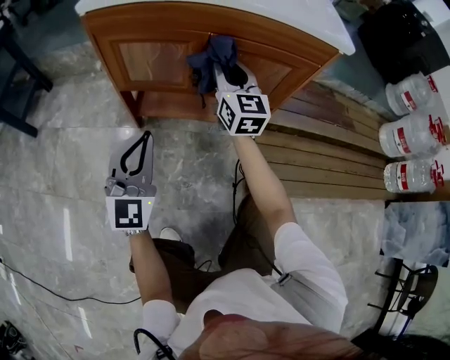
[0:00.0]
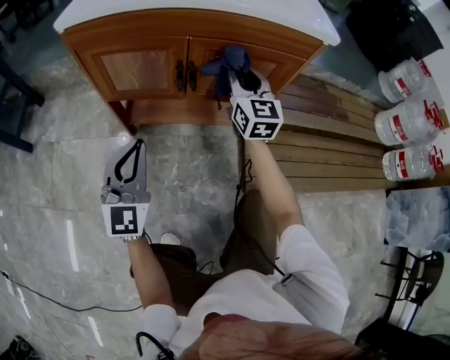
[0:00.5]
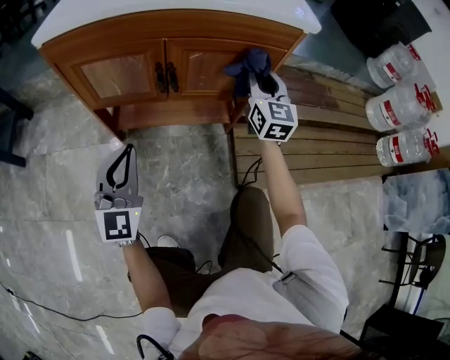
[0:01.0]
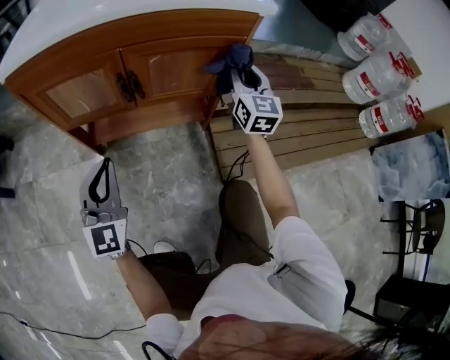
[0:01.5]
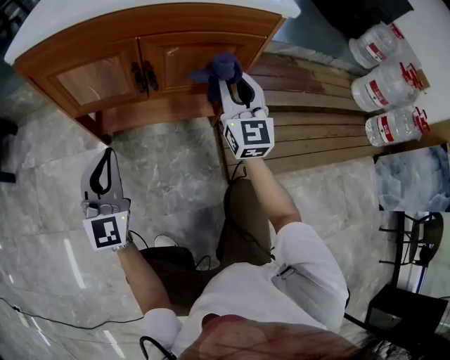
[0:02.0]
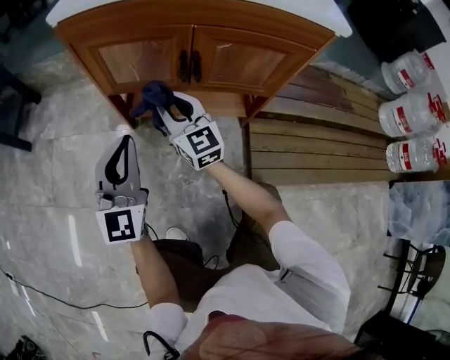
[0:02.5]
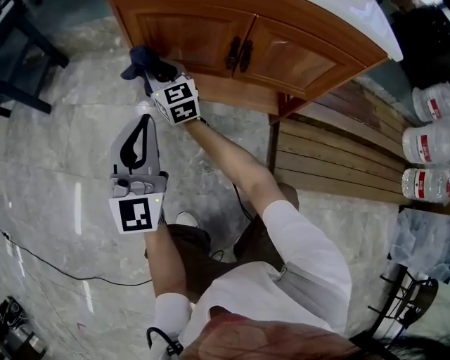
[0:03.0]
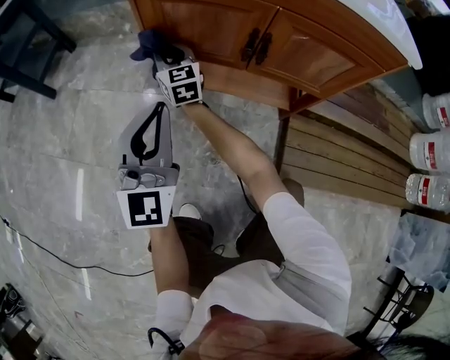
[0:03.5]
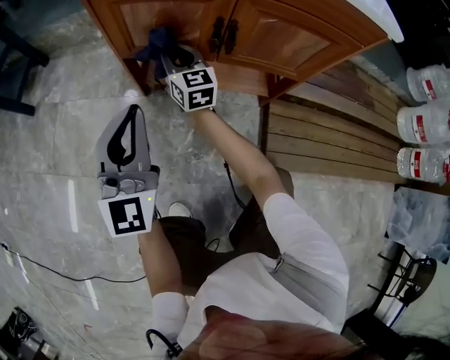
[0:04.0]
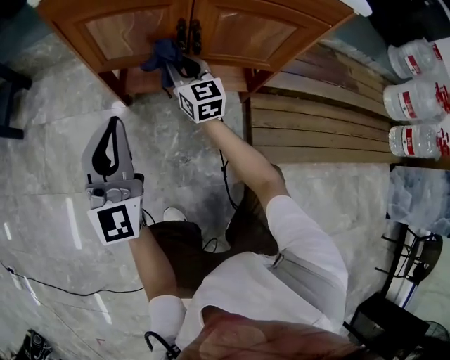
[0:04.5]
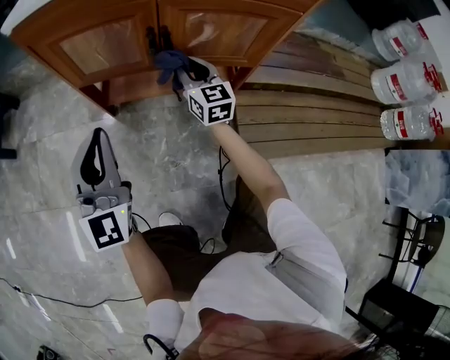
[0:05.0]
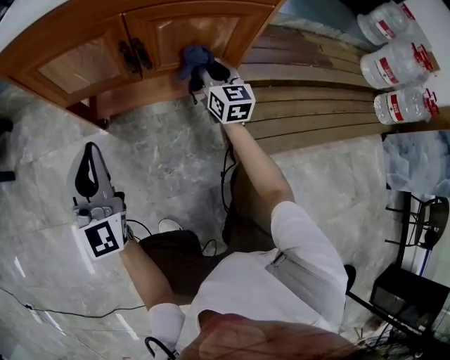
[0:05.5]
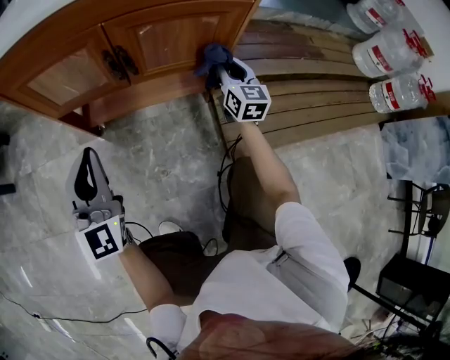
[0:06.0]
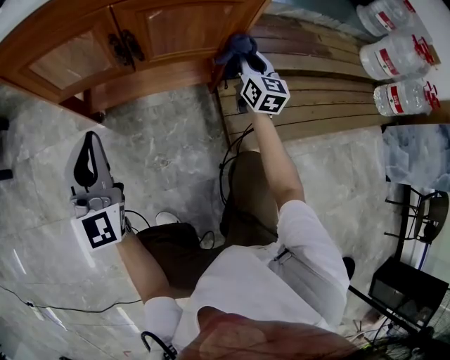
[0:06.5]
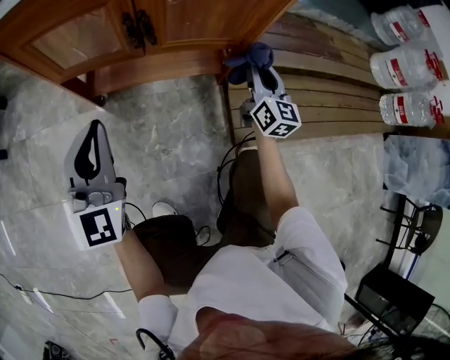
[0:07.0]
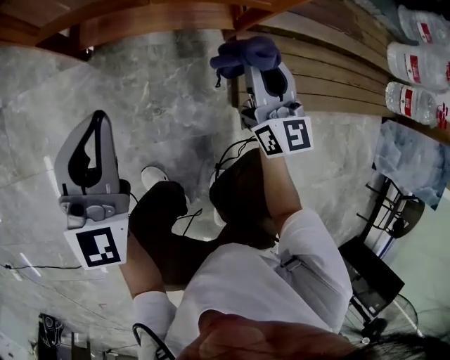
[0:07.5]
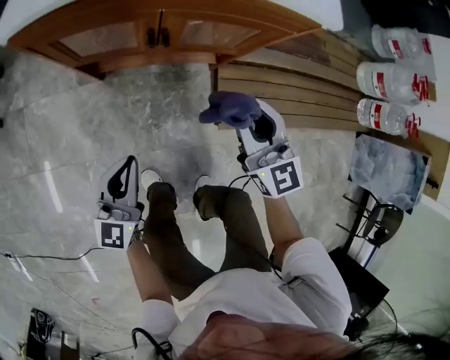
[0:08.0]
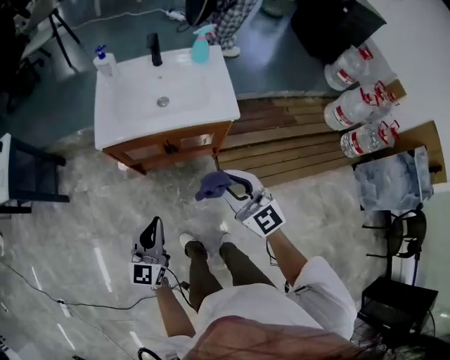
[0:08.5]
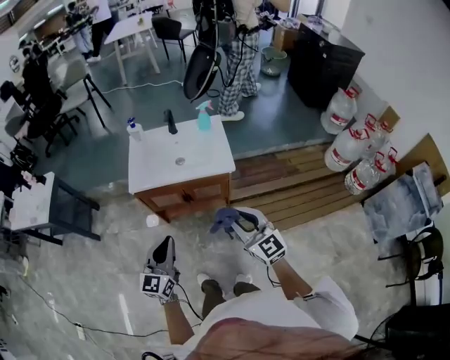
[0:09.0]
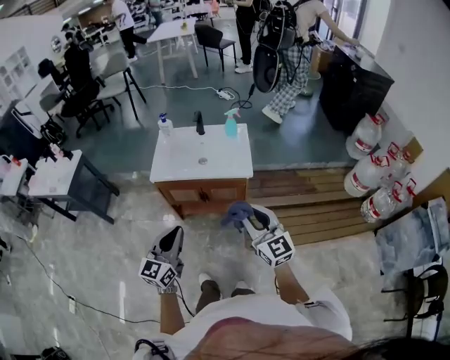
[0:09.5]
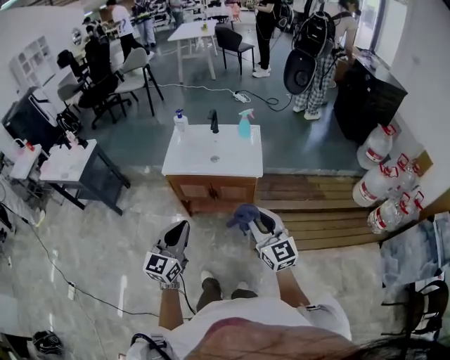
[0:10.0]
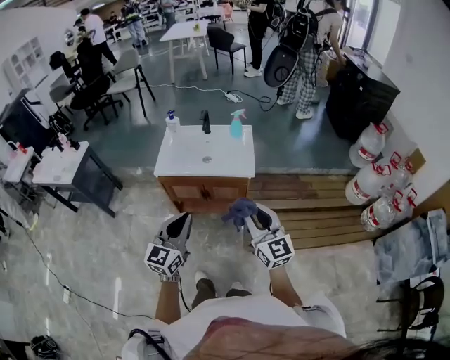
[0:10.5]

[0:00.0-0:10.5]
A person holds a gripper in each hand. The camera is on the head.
0:00.0 to 0:02.0: The right gripper travels to the right by some 15 cm.
0:02.0 to 0:04.0: The right gripper heads to the left, downward and forward, covering some 35 cm, and swivels roughly 30 degrees; the left gripper travels to the left by about 5 cm.
0:04.0 to 0:06.5: The left gripper is displaced to the right by approximately 5 cm. The right gripper shifts roughly 40 cm to the right, and swivels approximately 30 degrees.
0:06.5 to 0:08.5: The left gripper heads upward, covering roughly 35 cm, and swivels about 30 degrees. The right gripper is displaced upward and backward by approximately 60 cm, and changes its angle by about 40 degrees.
0:08.5 to 0:10.5: The right gripper heads upward, backward and to the right, covering roughly 25 cm. Meanwhile the left gripper moves upward and to the right, approximately 25 cm.

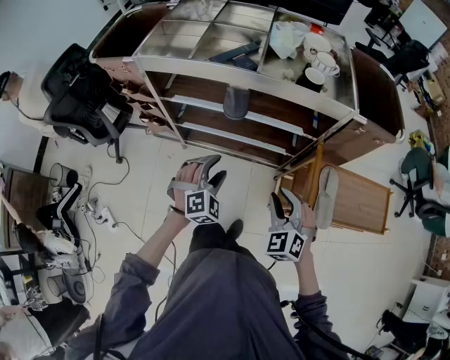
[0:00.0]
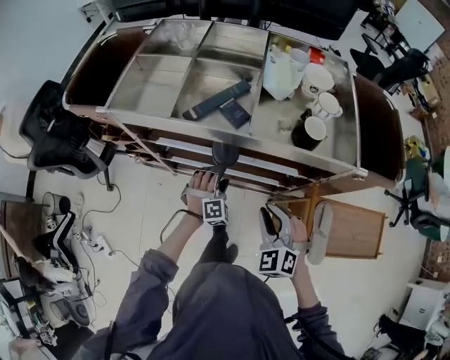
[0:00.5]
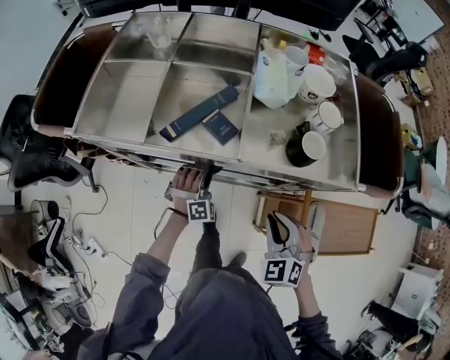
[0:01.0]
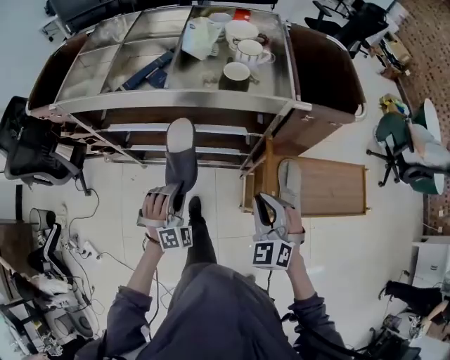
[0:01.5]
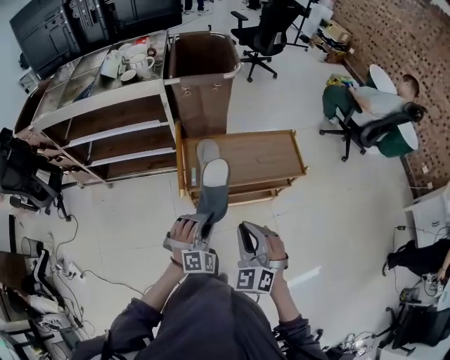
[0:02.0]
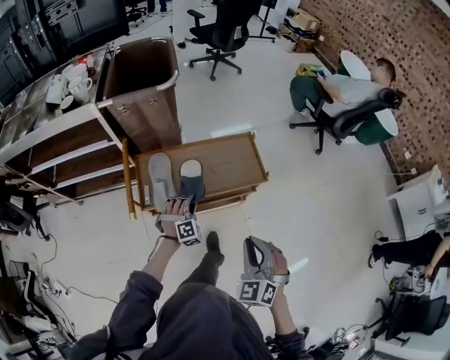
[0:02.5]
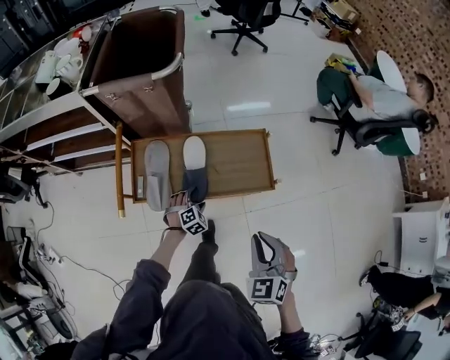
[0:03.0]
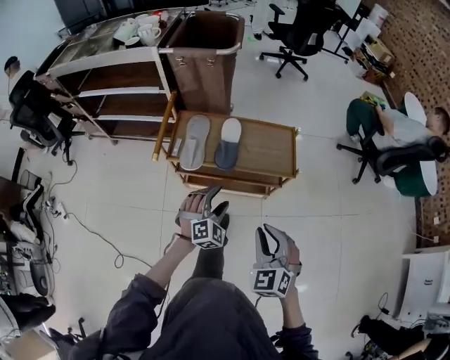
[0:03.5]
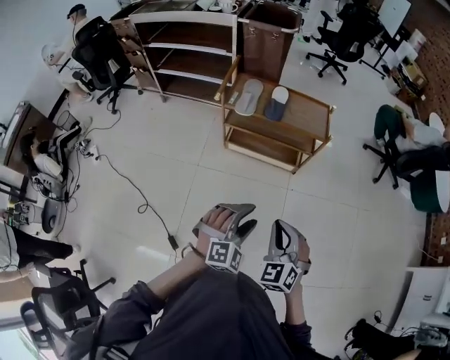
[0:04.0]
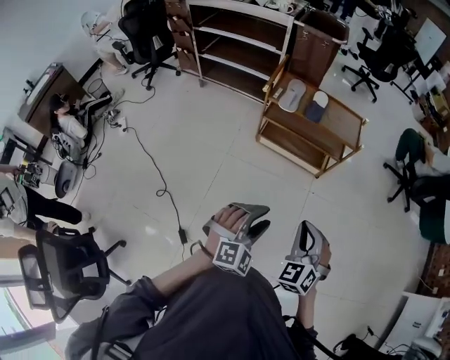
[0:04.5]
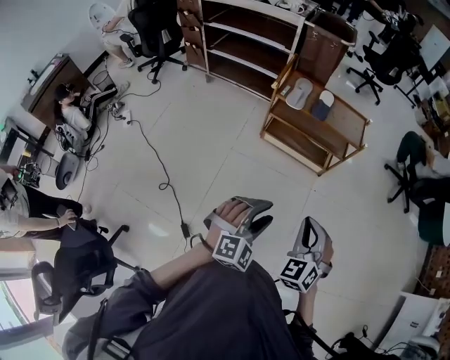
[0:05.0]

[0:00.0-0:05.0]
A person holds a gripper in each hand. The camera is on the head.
0:00.0 to 0:02.5: The pair of grippers is taken approximately 60 cm. The right gripper turns by some 30 degrees. The left gripper swivels approximately 30 degrees, and closes.
0:02.5 to 0:05.0: The pair of grippers is taken backward, some 50 cm. The right gripper rotates about 30 degrees; the left gripper rotates approximately 30 degrees.

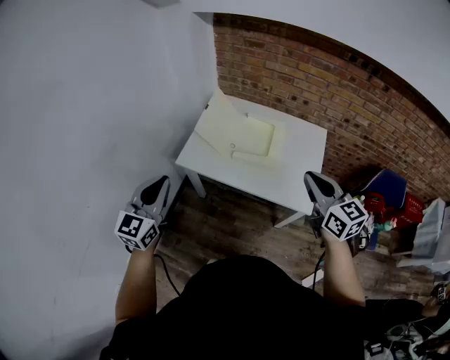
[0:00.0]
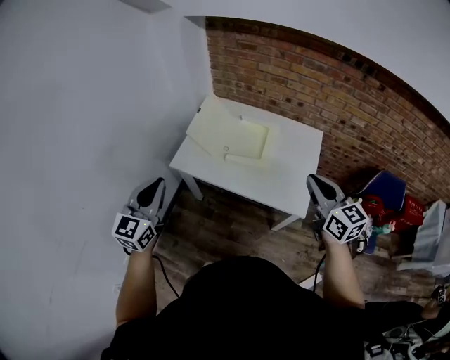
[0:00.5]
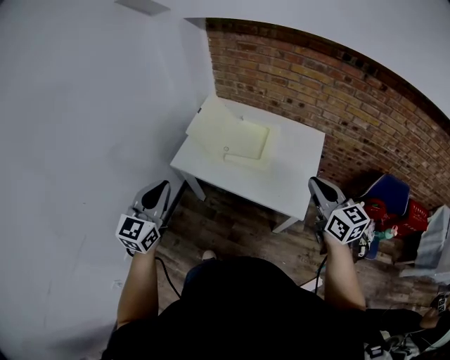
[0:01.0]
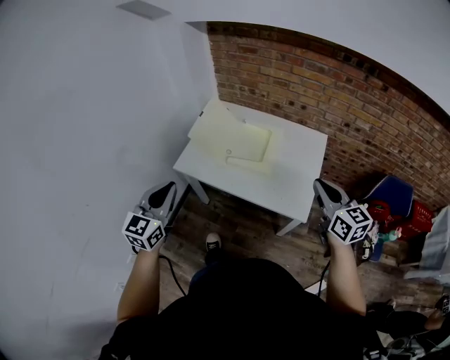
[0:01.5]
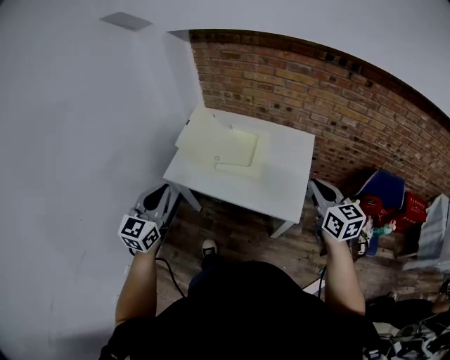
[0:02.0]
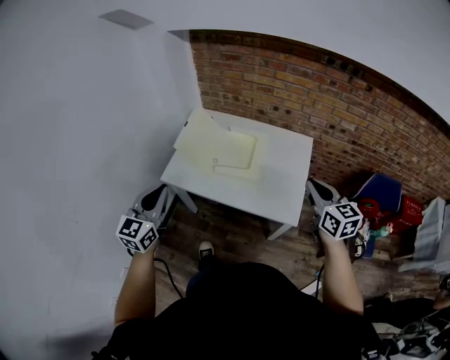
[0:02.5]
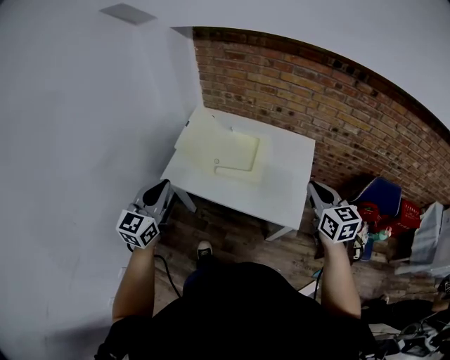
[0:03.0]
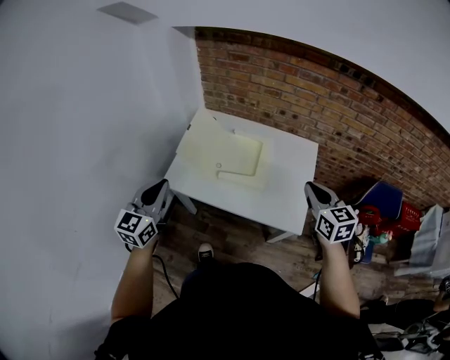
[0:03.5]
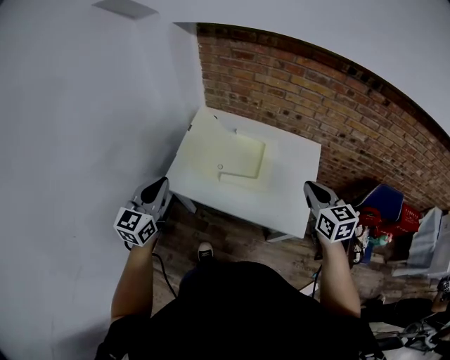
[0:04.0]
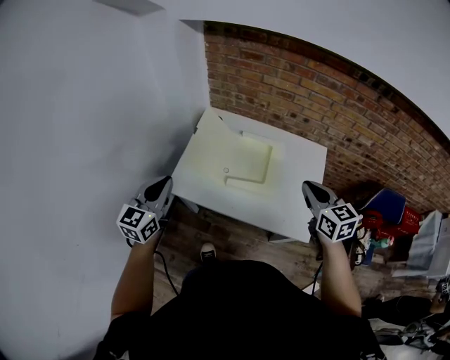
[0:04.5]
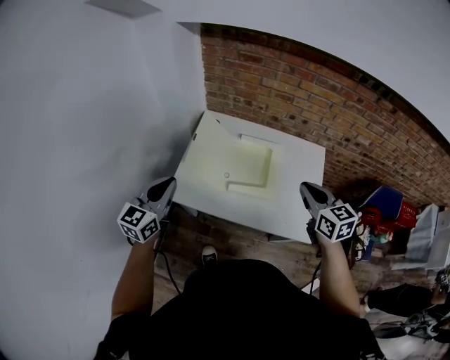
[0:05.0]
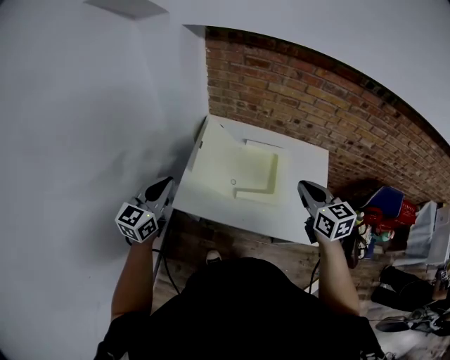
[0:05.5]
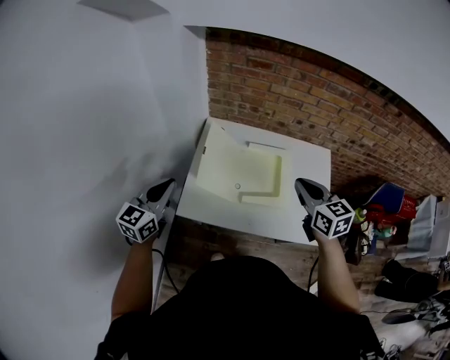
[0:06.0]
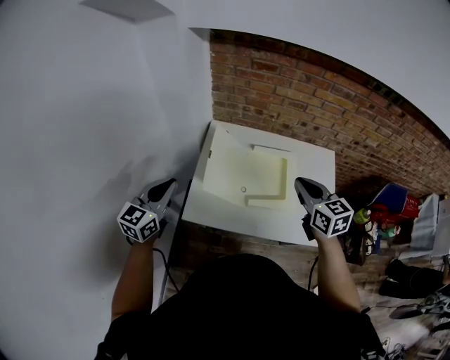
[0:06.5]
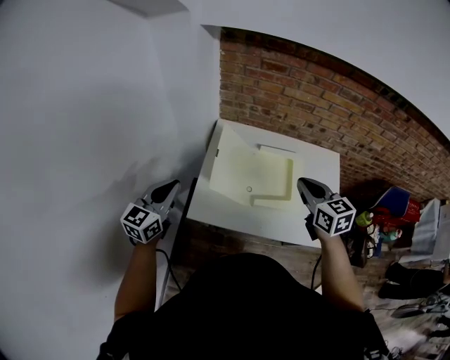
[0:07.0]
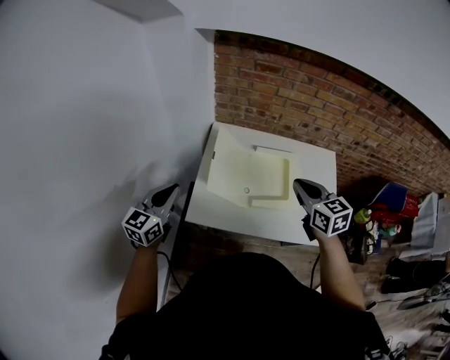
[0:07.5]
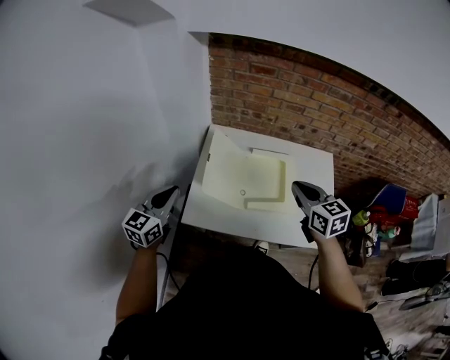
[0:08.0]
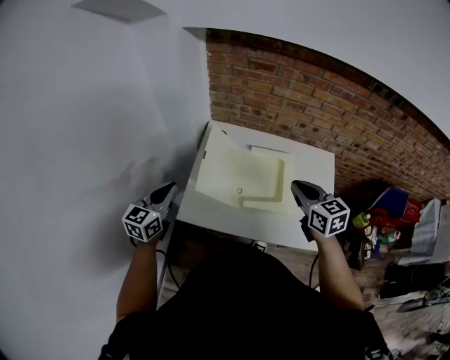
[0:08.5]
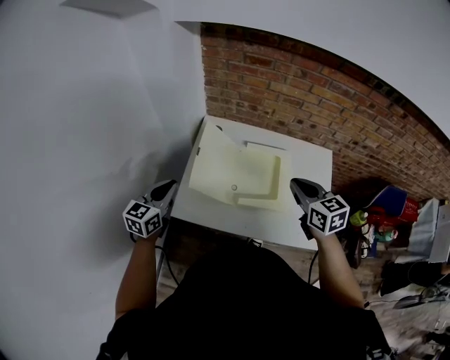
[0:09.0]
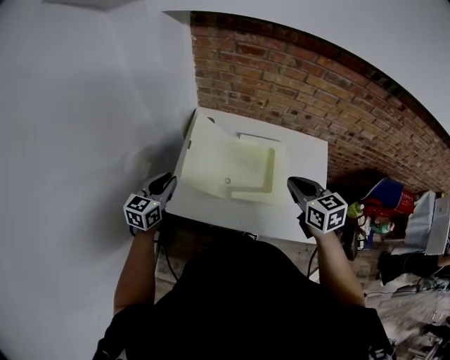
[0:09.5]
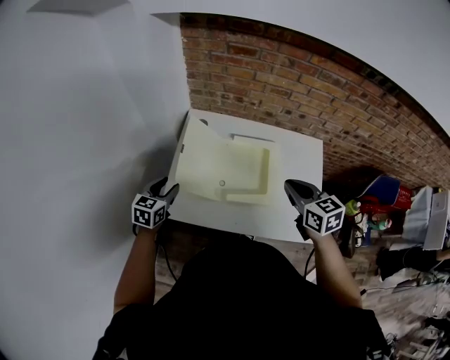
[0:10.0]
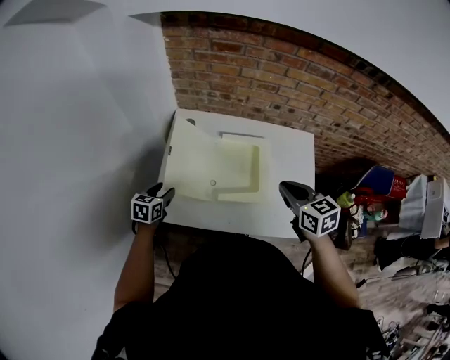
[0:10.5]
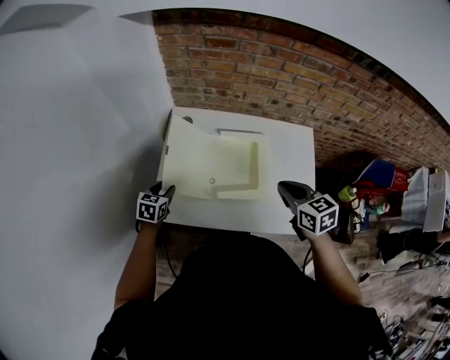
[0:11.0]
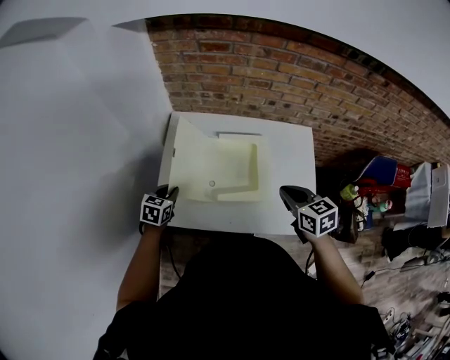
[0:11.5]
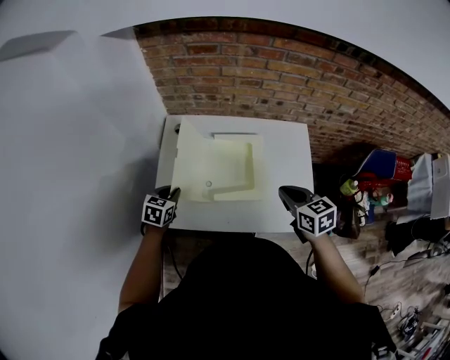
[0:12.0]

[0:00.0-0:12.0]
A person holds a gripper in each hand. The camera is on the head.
0:00.0 to 0:02.0: The grippers both shift to the right by about 10 cm.
0:02.0 to 0:04.0: Both grippers move forward and to the left, approximately 10 cm.
0:04.0 to 0:06.0: The right gripper goes approximately 20 cm to the left and forward, while the left gripper goes roughly 20 cm forward and to the left.
0:06.0 to 0:08.0: The grippers stay close to where they were, moving slightly.
0:08.0 to 0:10.0: The left gripper shifts approximately 15 cm downward, to the right and forward, turns by some 20 degrees, and opens its fingers; the right gripper is displaced to the right by about 5 cm.
0:10.0 to 0:12.0: Both grippers travel together to the right, approximately 5 cm. The left gripper closes.
